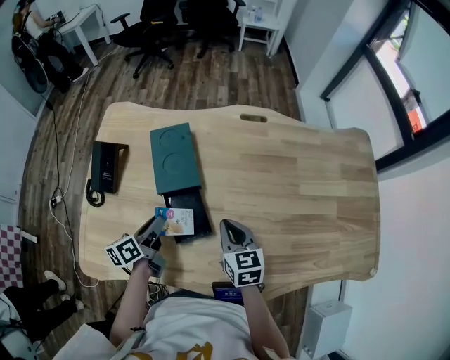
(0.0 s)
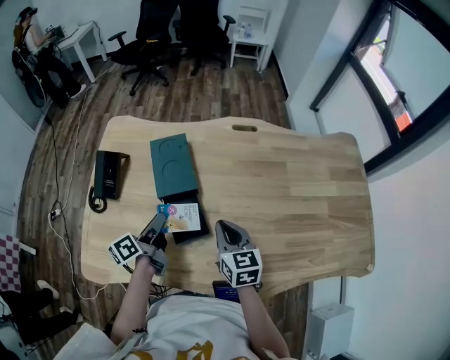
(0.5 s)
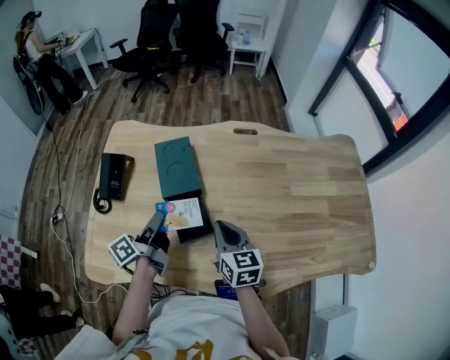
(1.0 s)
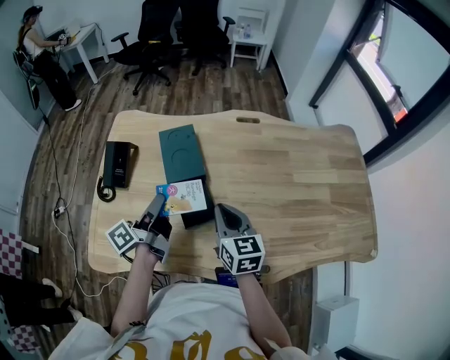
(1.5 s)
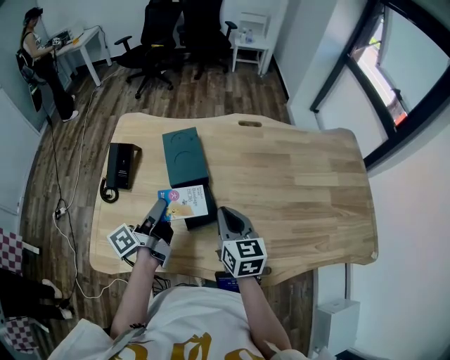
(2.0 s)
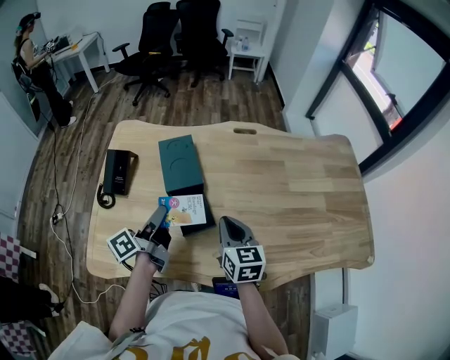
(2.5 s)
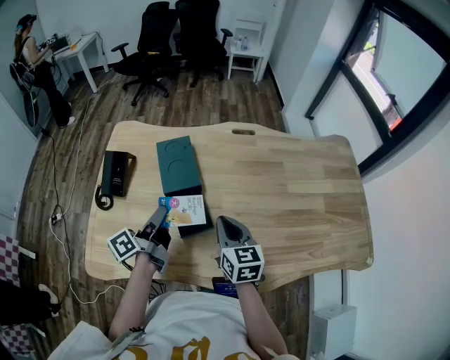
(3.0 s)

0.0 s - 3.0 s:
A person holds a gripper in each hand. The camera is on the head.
0.0 s - 1.5 s: The right gripper heads upward, covering about 10 cm. The left gripper is displaced upward by approximately 15 cm, and turns by about 30 degrees.
1.5 s - 3.0 s: There are only small adjustments of the grippers.

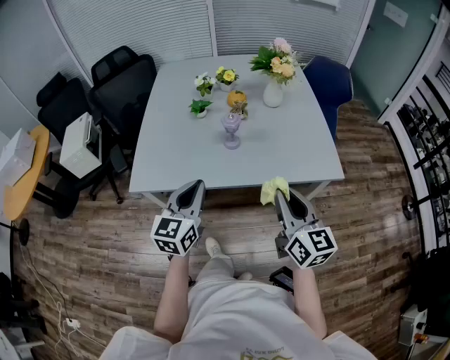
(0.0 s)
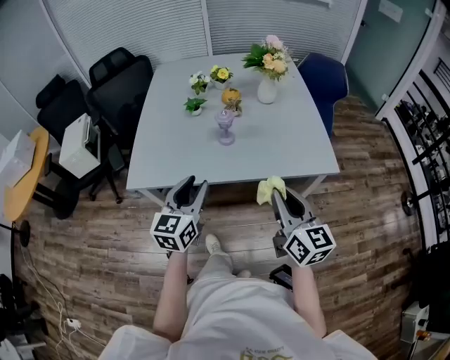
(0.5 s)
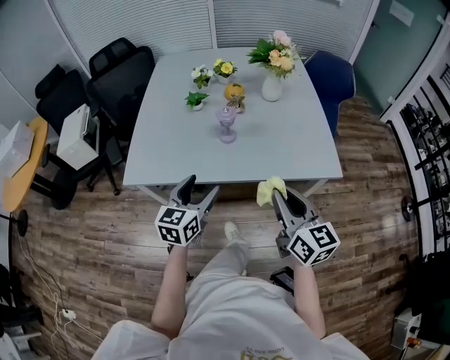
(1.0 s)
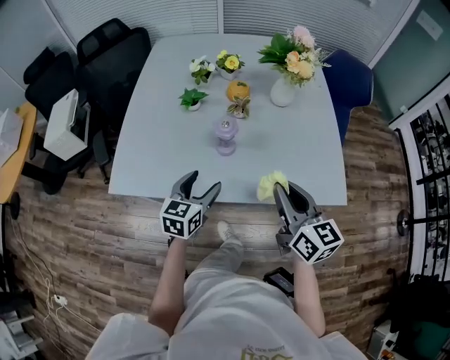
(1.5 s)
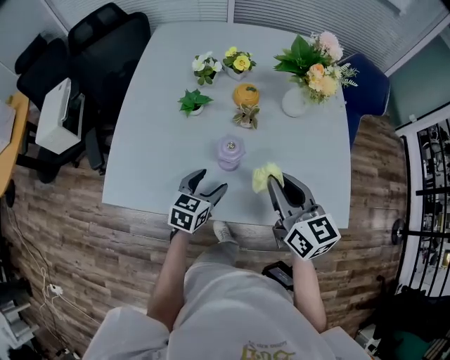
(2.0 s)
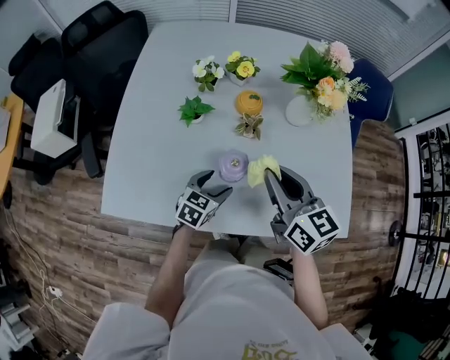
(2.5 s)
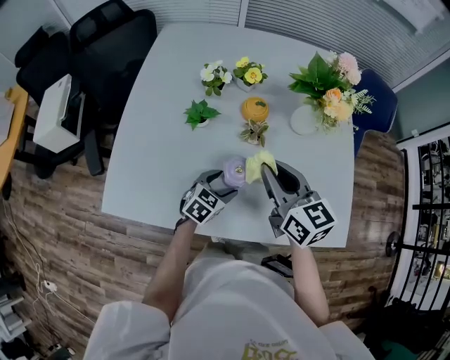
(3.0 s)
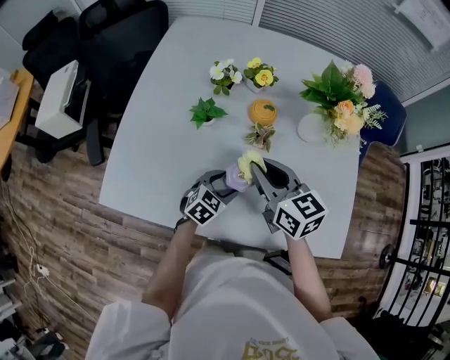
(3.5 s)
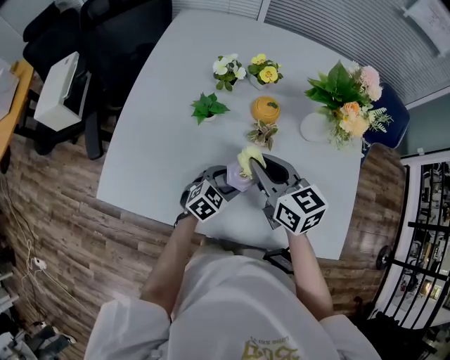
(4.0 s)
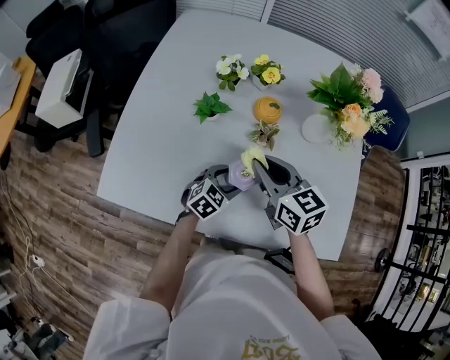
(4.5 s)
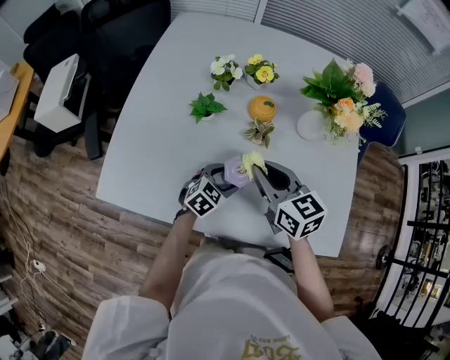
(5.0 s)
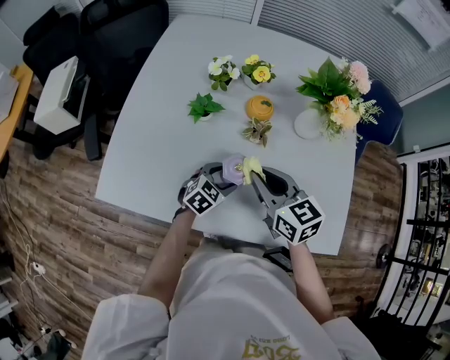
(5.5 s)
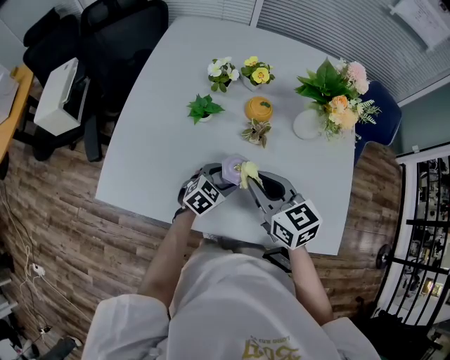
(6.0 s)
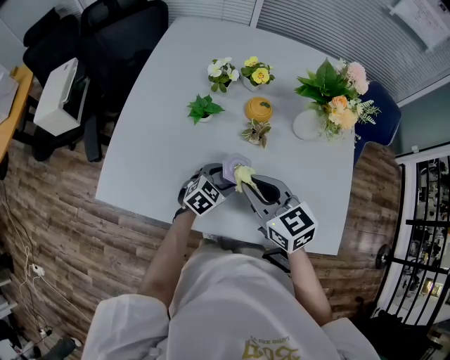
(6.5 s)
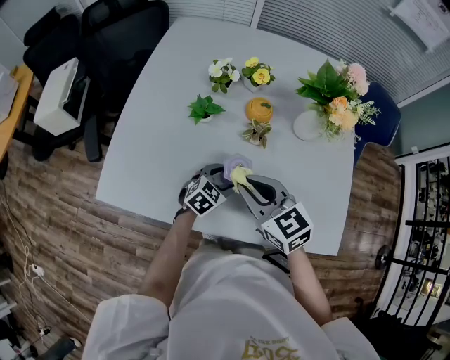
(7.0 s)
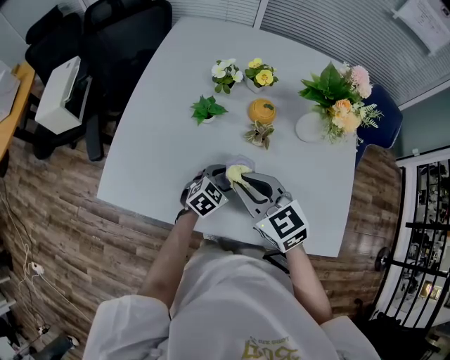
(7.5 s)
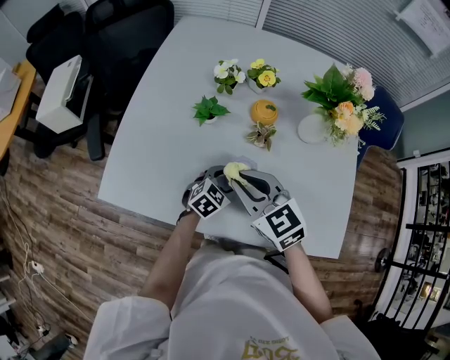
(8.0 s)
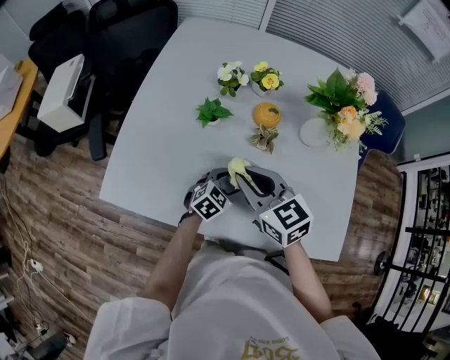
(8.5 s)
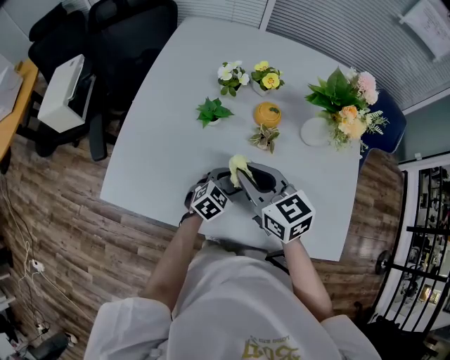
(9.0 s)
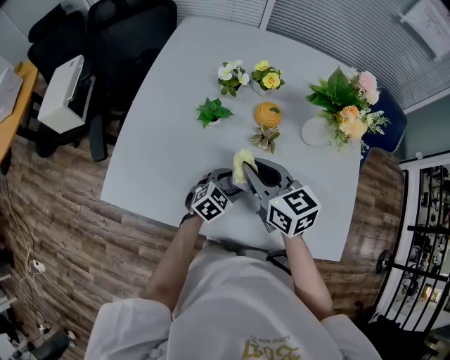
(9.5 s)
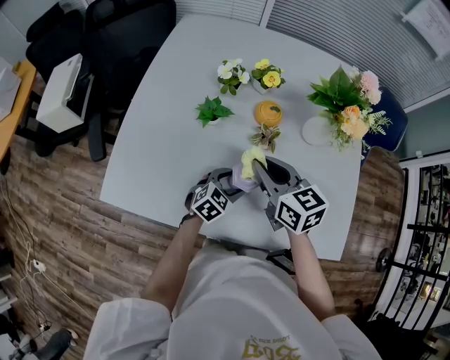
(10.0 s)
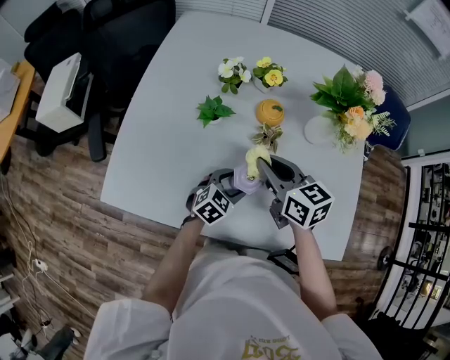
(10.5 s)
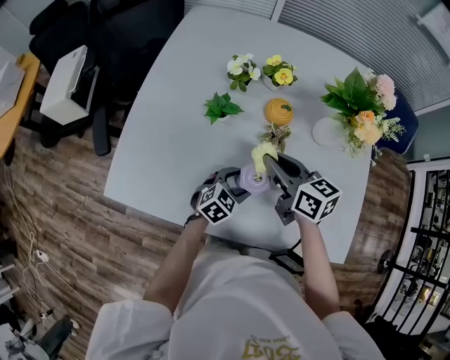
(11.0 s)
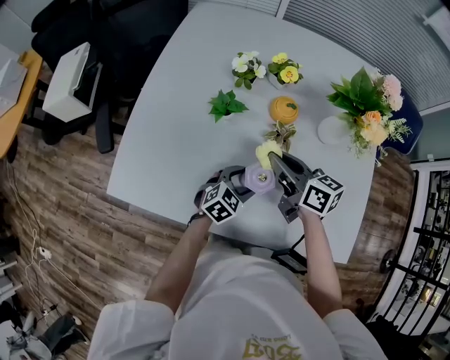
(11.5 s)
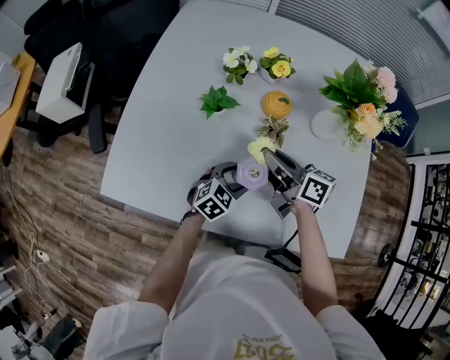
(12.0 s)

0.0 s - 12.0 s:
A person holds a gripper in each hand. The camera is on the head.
0.0 s - 2.0 s: The left gripper shifts approximately 30 cm forward and downward, swivels some 30 degrees, and opens up. The right gripper moves forward, roughly 25 cm.
2.0 s - 4.0 s: The left gripper is displaced downward and forward by approximately 10 cm, and swivels roughly 20 degrees; the right gripper is displaced forward and to the left by roughly 15 cm.
4.0 s - 6.0 s: The right gripper heads backward, covering roughly 5 cm.
6.0 s - 8.0 s: The right gripper moves to the left, some 5 cm.
8.0 s - 10.0 s: The right gripper shifts approximately 5 cm forward, and changes its angle by approximately 20 degrees.
10.0 s - 12.0 s: The right gripper heads downward, covering roughly 5 cm, and changes its angle by approximately 40 degrees.

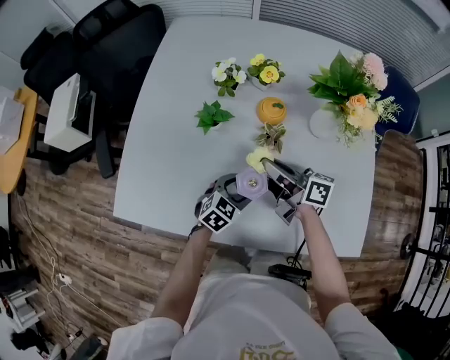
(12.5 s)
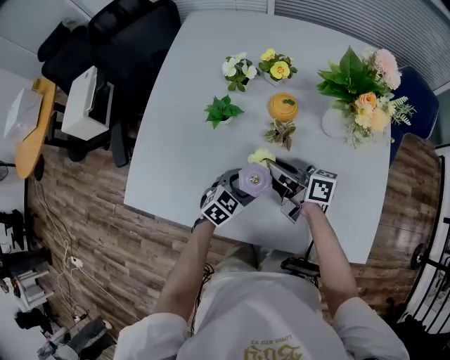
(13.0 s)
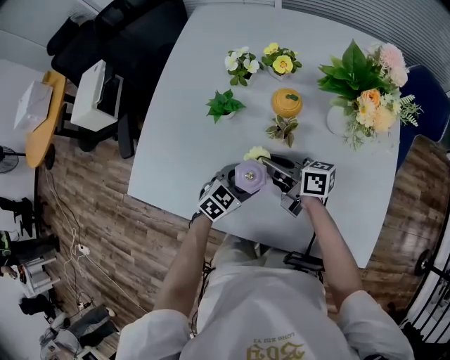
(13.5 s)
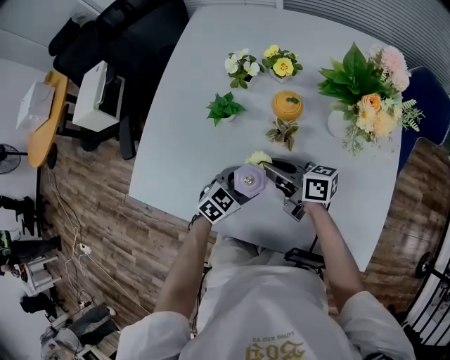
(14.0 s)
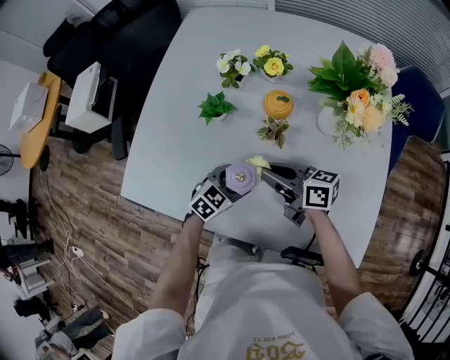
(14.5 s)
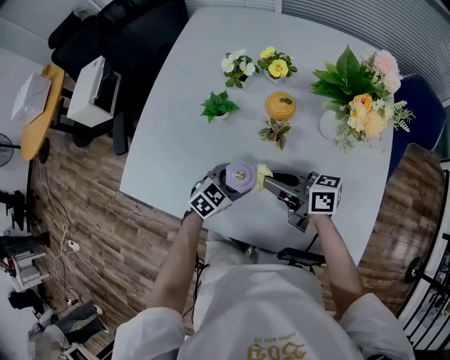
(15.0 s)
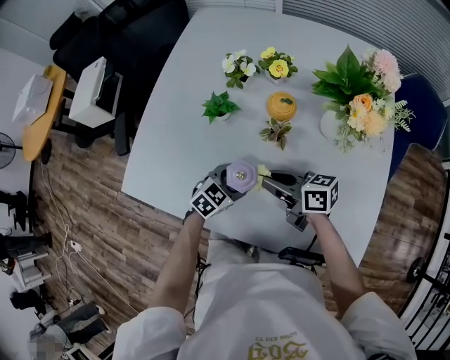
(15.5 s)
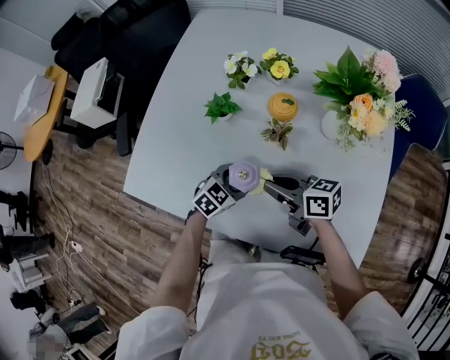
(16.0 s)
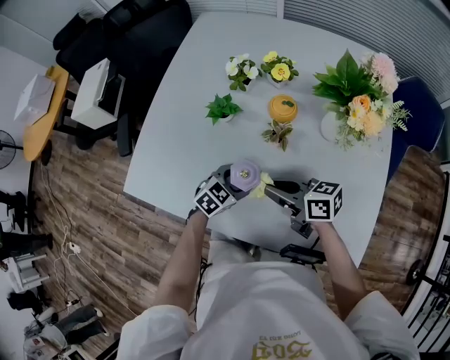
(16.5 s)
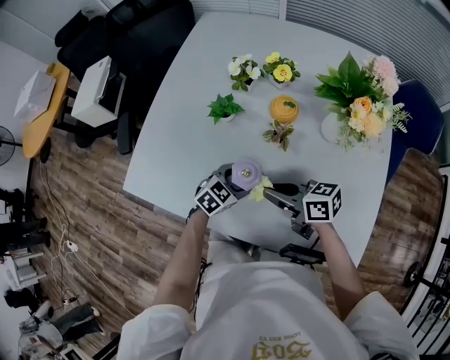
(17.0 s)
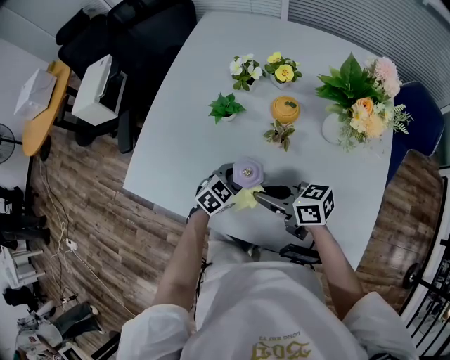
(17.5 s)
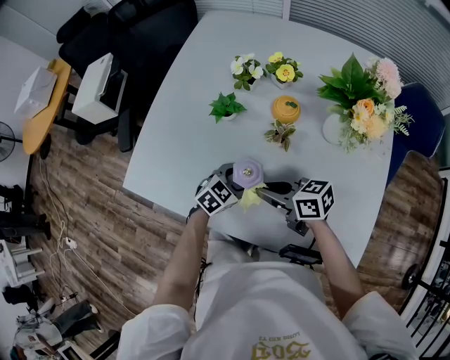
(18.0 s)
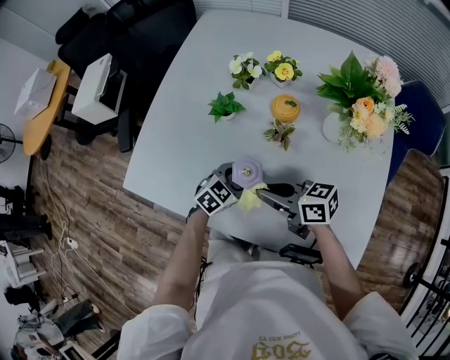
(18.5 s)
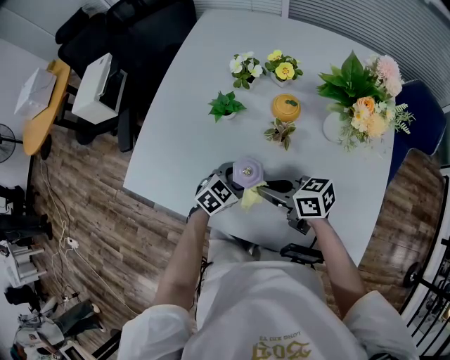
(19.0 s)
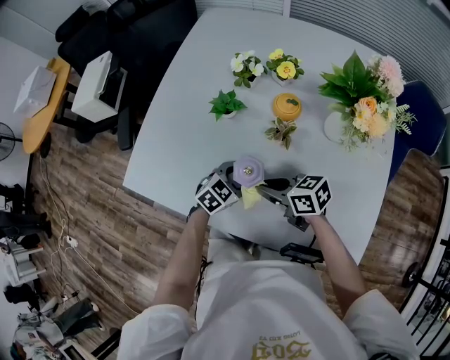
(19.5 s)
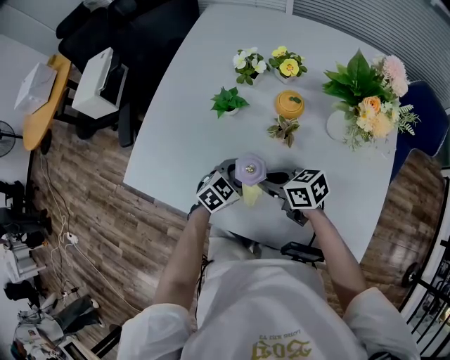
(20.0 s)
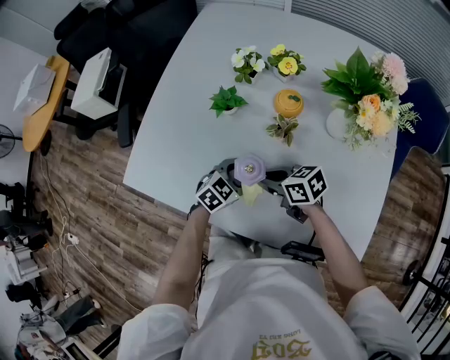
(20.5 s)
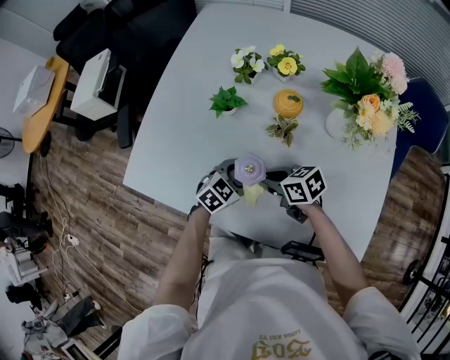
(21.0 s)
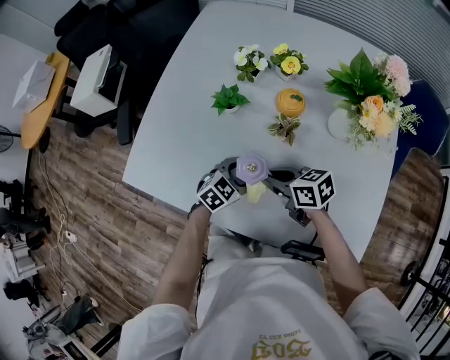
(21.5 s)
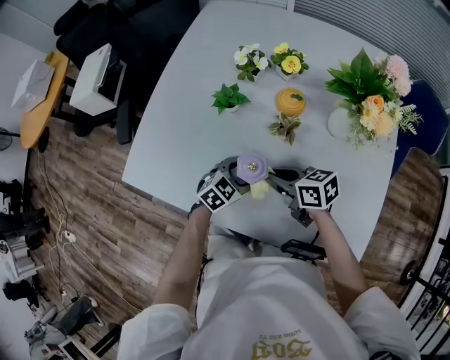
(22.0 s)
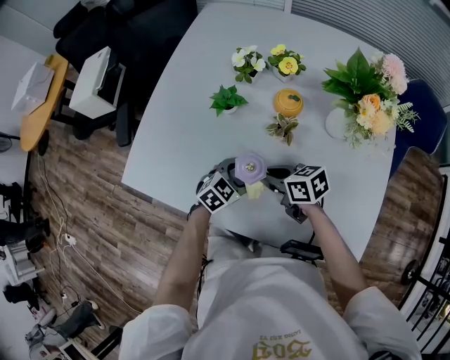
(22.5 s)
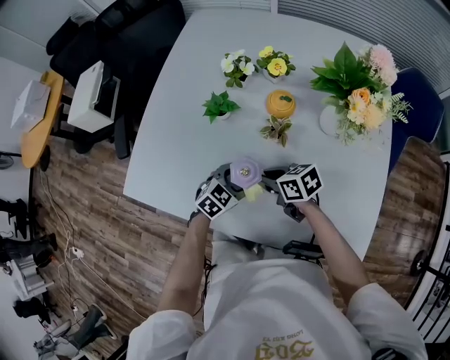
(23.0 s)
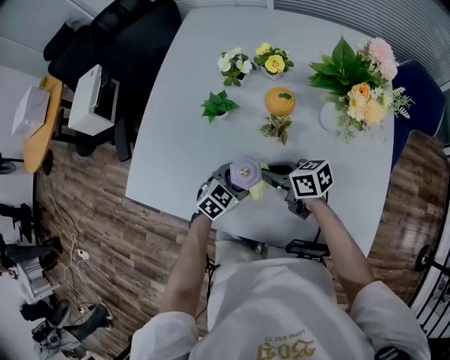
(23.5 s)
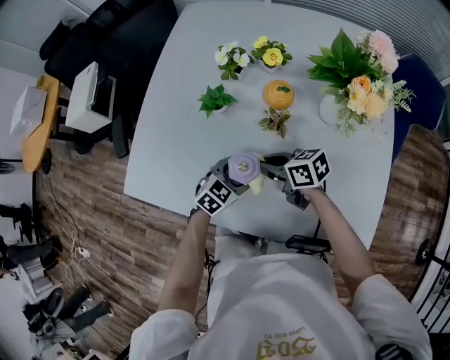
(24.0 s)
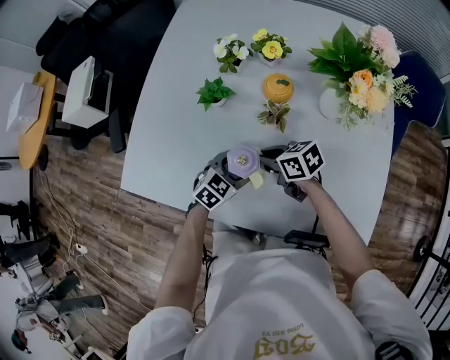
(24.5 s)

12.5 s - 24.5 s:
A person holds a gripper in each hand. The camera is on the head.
12.5 s - 14.5 s: The right gripper turns by about 20 degrees.
14.5 s - 16.5 s: The grippers stay close to where they were, moving slightly.
16.5 s - 18.5 s: The grippers stay close to where they were, moving slightly.
18.5 s - 20.5 s: The right gripper shifts approximately 5 cm downward.
20.5 s - 24.5 s: There are only small adjustments of the grippers.
